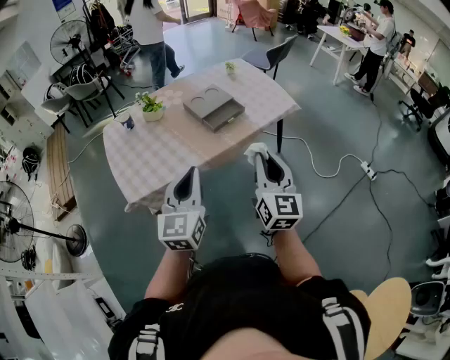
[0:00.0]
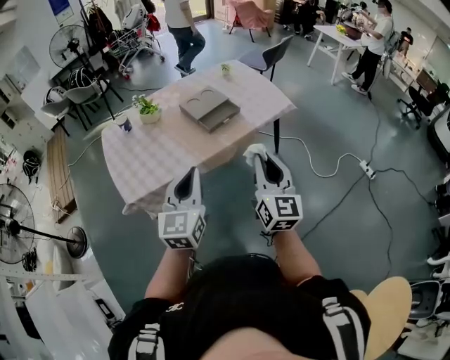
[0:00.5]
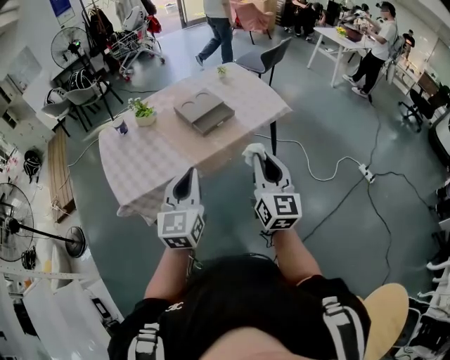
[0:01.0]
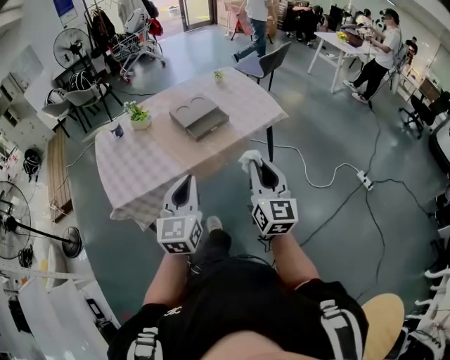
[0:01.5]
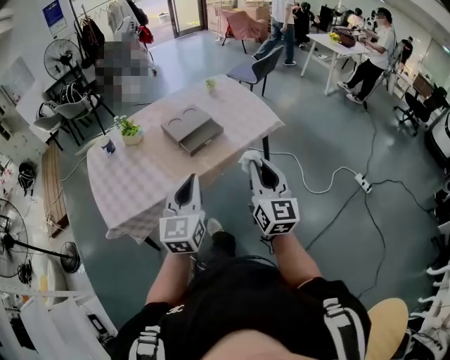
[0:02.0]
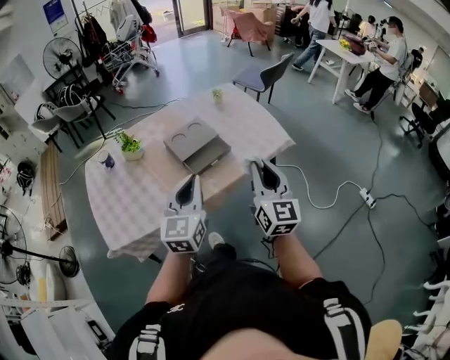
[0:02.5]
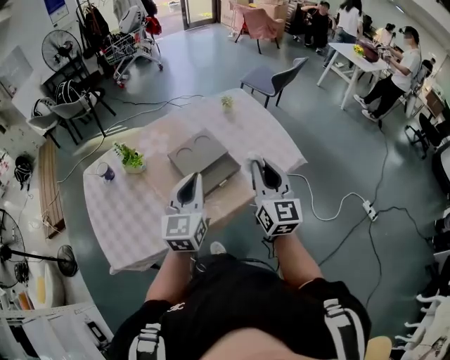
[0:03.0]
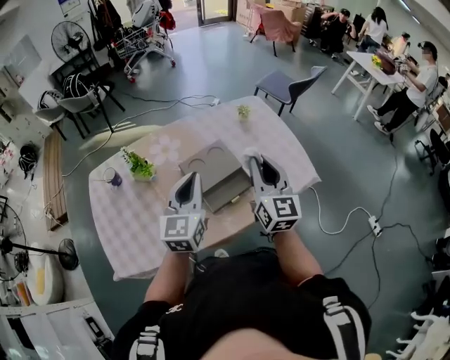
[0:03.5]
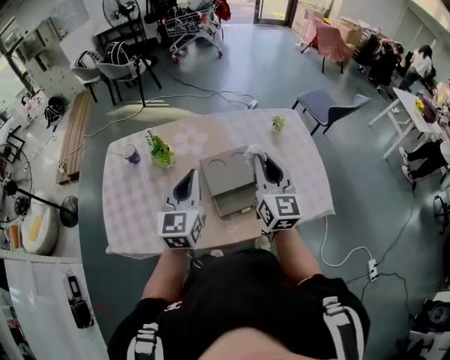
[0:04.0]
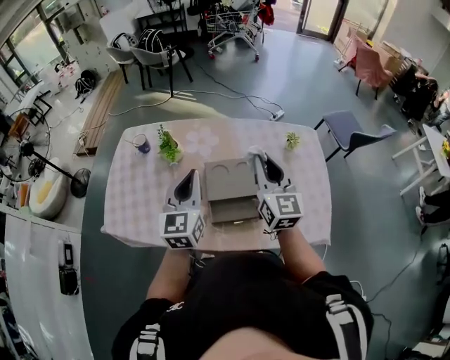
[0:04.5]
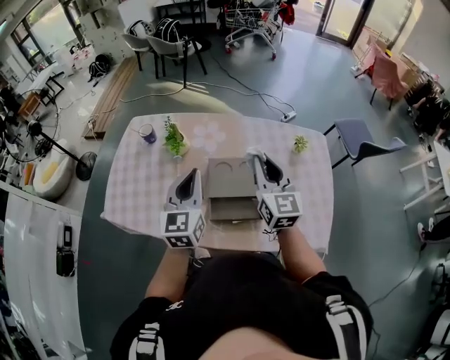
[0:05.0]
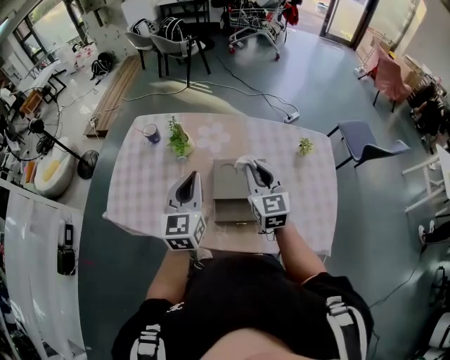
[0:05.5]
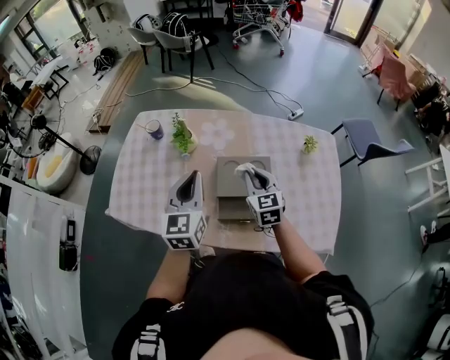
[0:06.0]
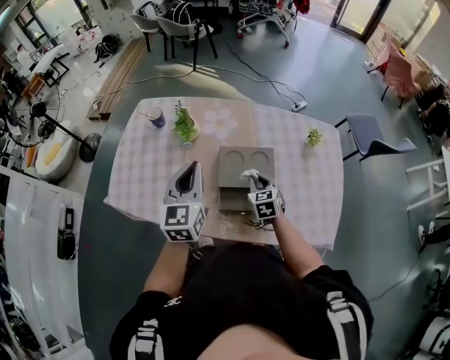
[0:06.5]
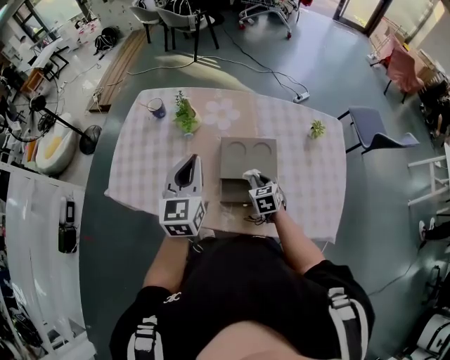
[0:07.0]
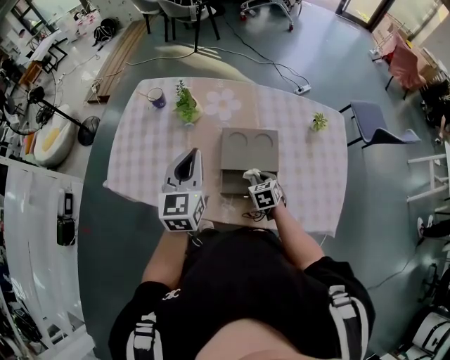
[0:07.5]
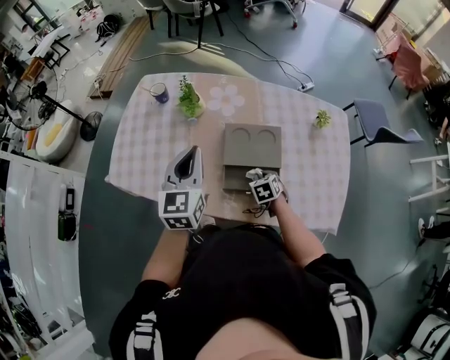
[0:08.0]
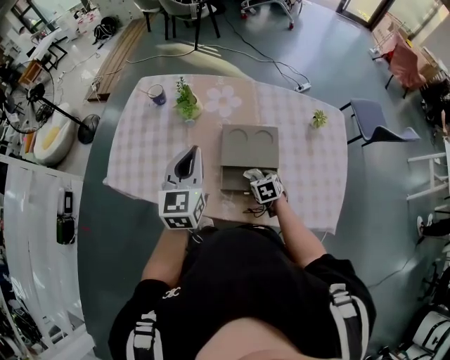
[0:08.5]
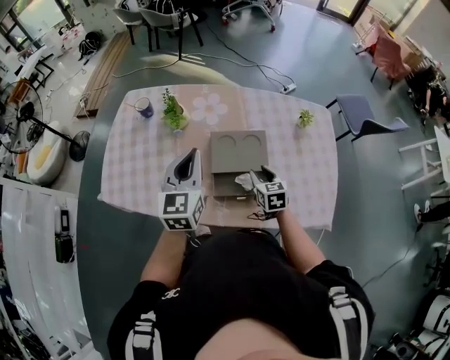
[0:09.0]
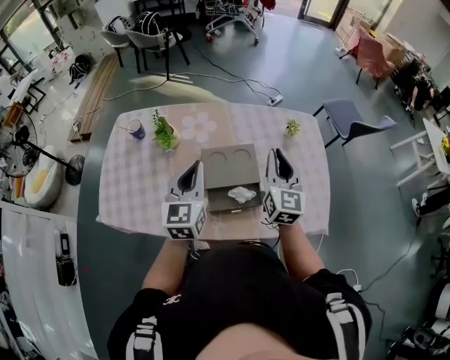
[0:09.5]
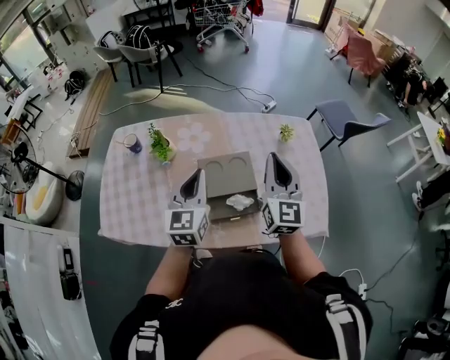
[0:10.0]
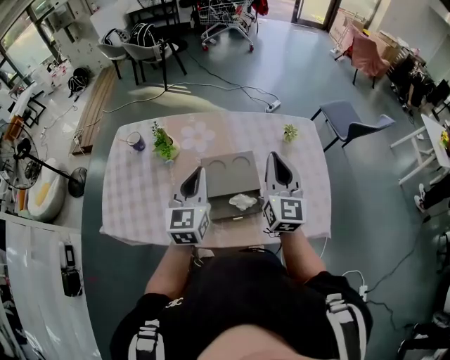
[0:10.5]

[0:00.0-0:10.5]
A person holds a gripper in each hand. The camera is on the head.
0:00.0 to 0:02.0: The two grippers go approximately 15 cm to the right and forward.
0:02.0 to 0:04.0: The pair of grippers is taken forward, some 50 cm. The left gripper turns by some 20 degrees, while the right gripper changes its angle by approximately 20 degrees.
0:04.0 to 0:06.5: The right gripper heads downward, covering approximately 25 cm, and points its fingers roughly 40 degrees further downward; the left gripper rotates roughly 20 degrees.
0:06.5 to 0:08.5: The right gripper is displaced downward and backward by approximately 15 cm, turns by about 20 degrees, and opens.
0:08.5 to 0:10.5: The right gripper moves upward, some 35 cm, points its fingers about 60 degrees further upward, and closes up, while the left gripper heads to the right, covering approximately 10 cm.

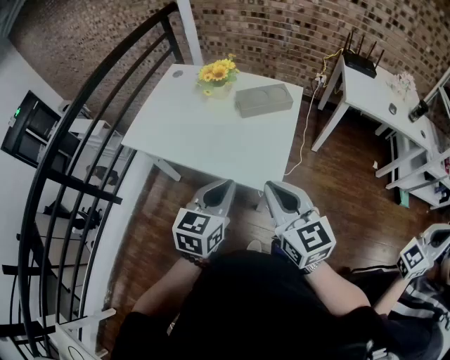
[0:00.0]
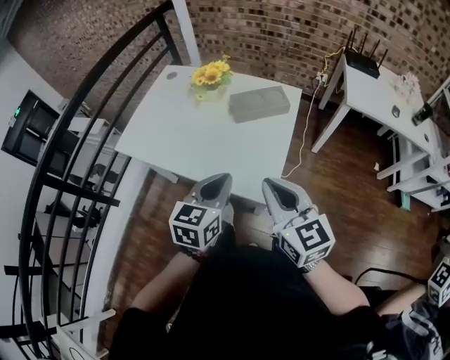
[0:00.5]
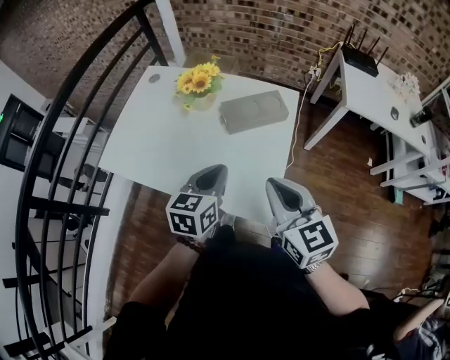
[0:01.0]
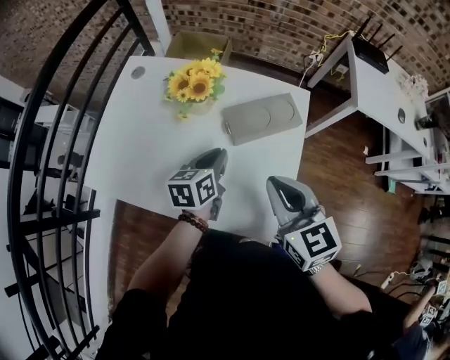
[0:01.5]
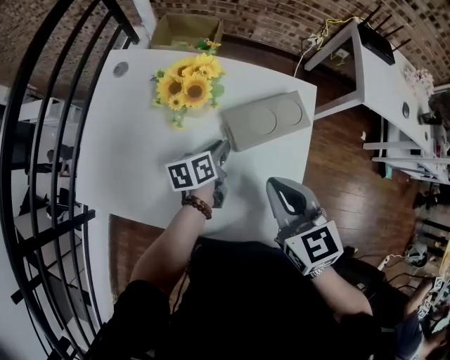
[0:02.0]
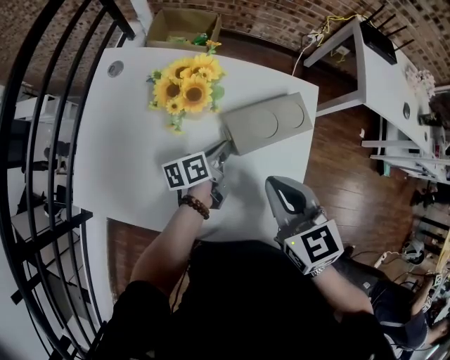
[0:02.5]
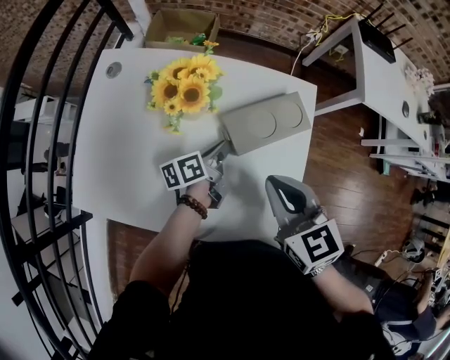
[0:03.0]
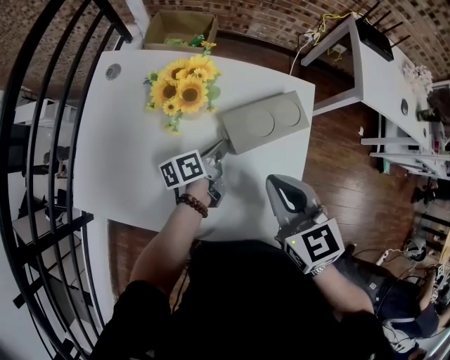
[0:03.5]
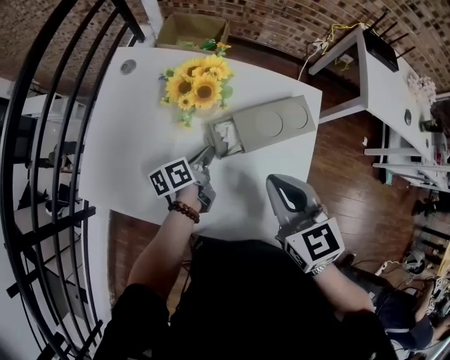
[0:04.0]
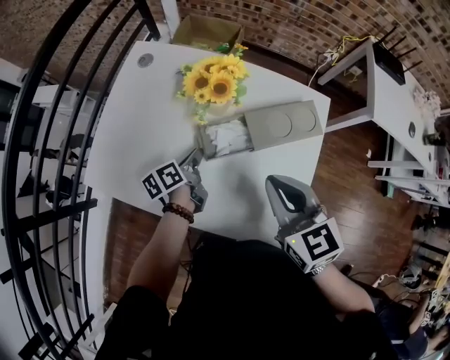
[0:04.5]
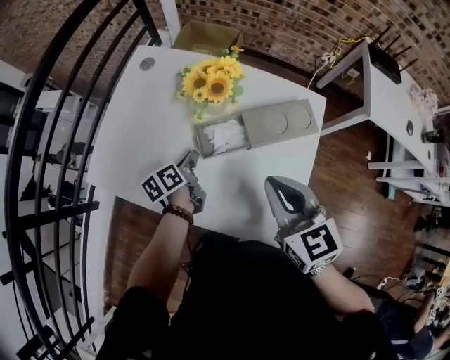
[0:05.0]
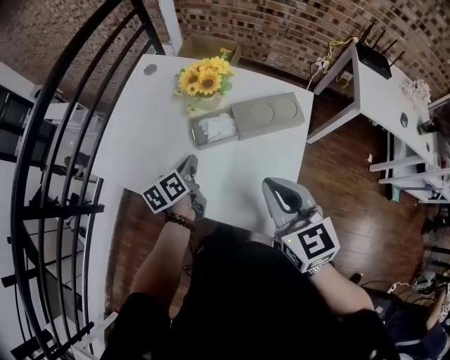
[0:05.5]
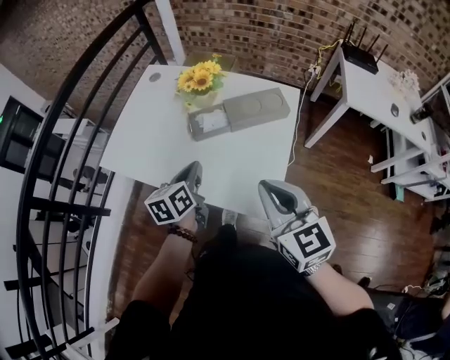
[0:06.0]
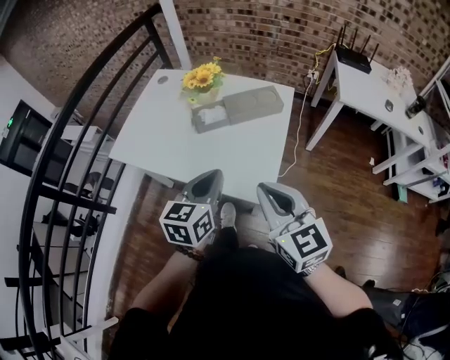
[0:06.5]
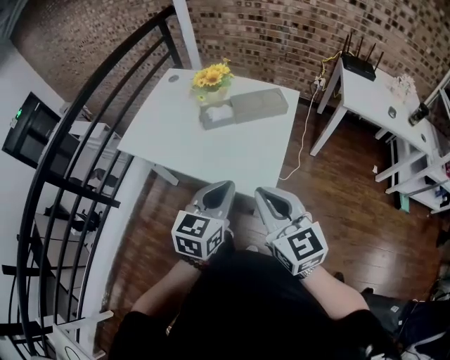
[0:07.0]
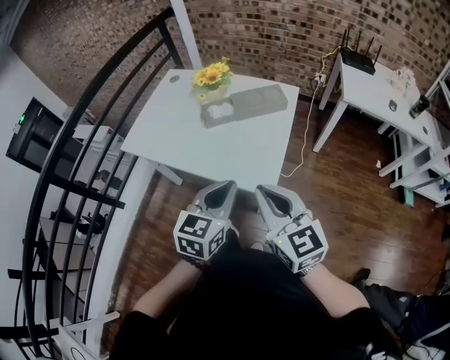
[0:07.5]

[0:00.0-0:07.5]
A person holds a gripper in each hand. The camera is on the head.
0:00.0 to 0:02.0: The right gripper travels forward by some 30 cm, and turns by some 20 degrees. Meanwhile the left gripper is displaced forward and downward by some 50 cm, and rotates around the line of its fingers by about 40 degrees, counterclockwise from behind.
0:02.0 to 0:04.0: The left gripper goes approximately 5 cm to the left.
0:04.0 to 0:05.5: The right gripper moves backward, roughly 10 cm, while the left gripper moves backward, upward and to the left, roughly 10 cm, and rotates about 20 degrees.
0:05.5 to 0:07.5: The left gripper heads backward, upward and to the right, covering roughly 40 cm, and rotates around the line of its fingers by some 50 degrees, clockwise from behind. Meanwhile the right gripper travels backward by roughly 25 cm.

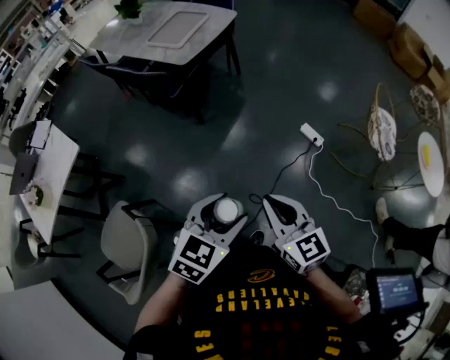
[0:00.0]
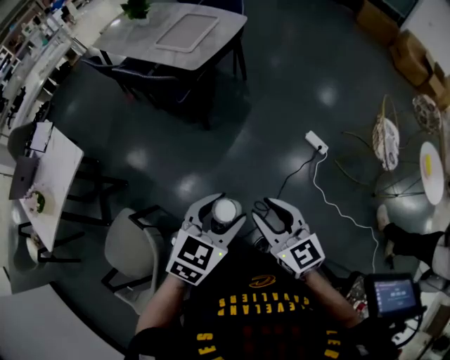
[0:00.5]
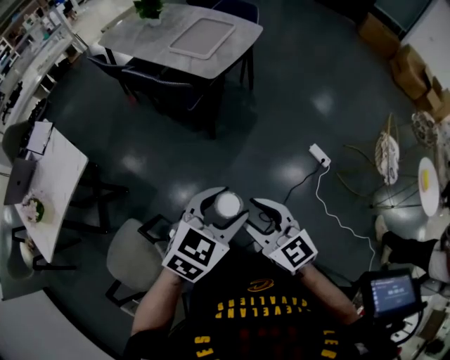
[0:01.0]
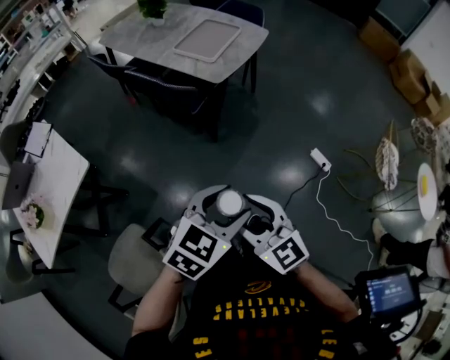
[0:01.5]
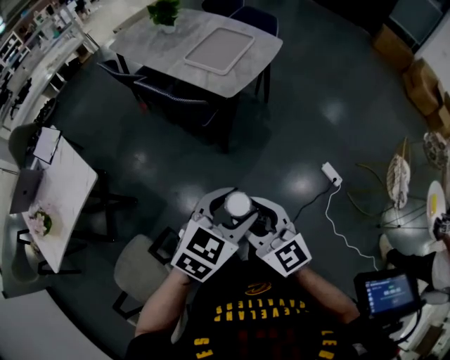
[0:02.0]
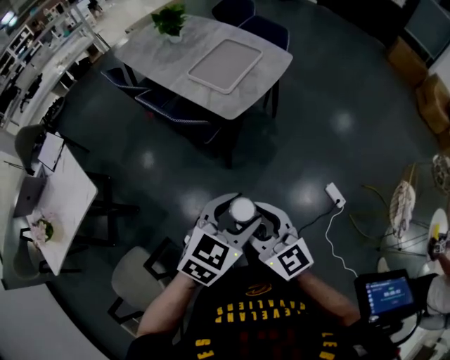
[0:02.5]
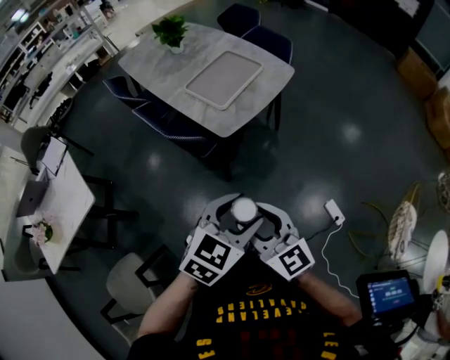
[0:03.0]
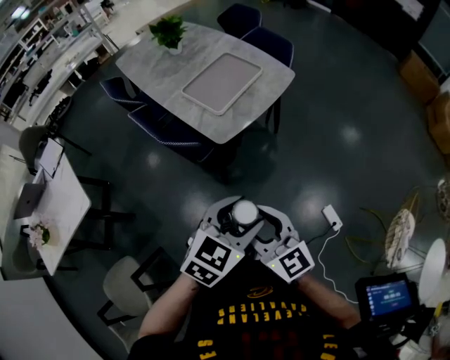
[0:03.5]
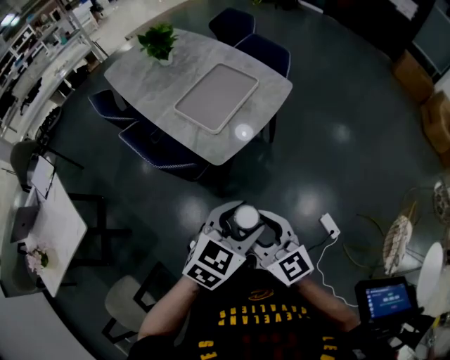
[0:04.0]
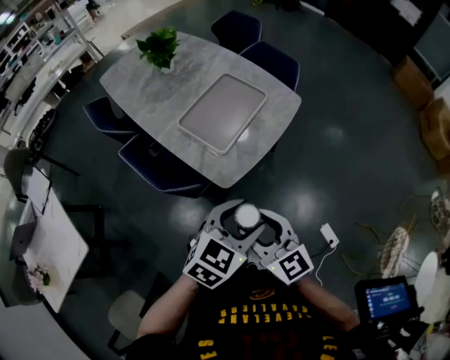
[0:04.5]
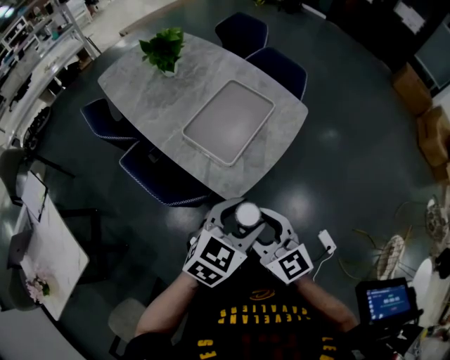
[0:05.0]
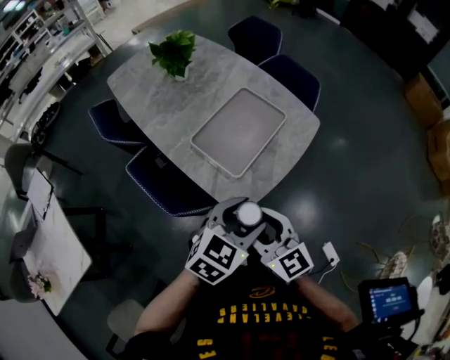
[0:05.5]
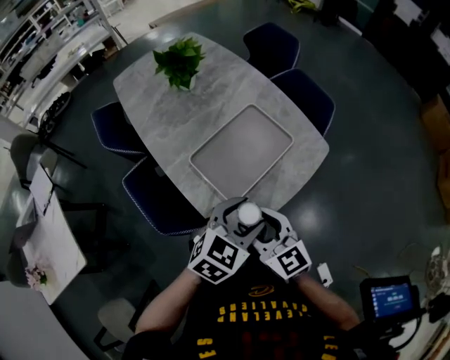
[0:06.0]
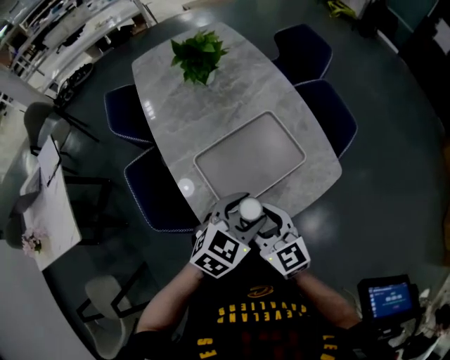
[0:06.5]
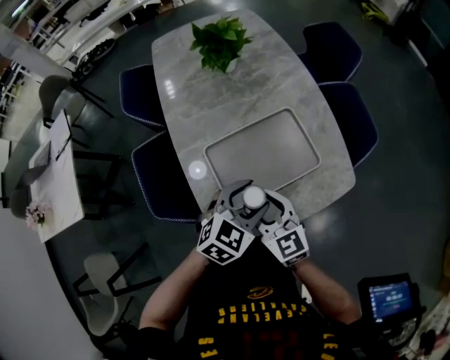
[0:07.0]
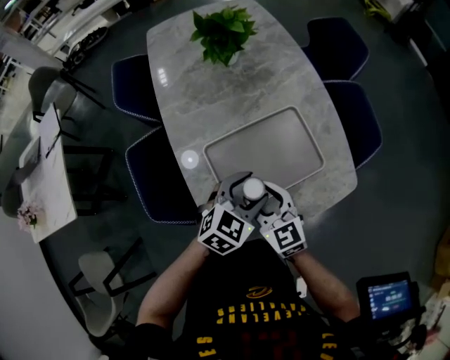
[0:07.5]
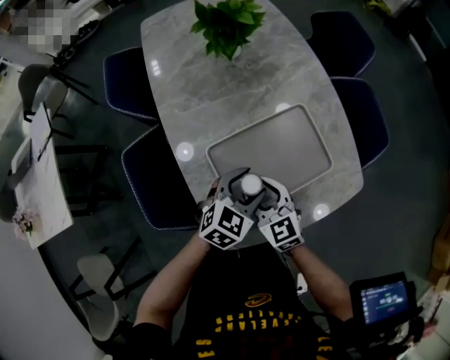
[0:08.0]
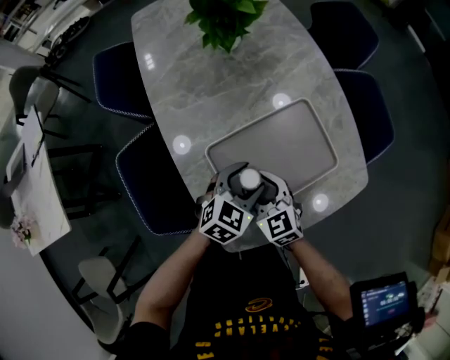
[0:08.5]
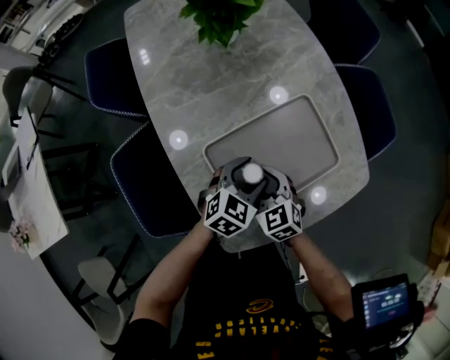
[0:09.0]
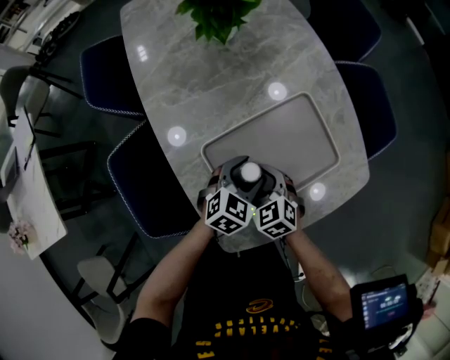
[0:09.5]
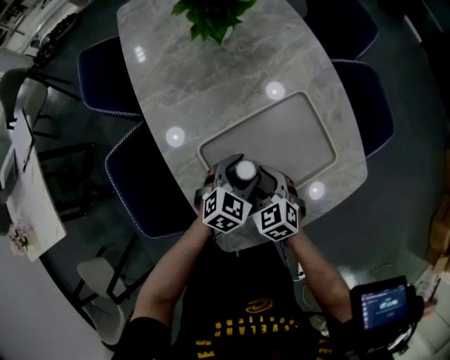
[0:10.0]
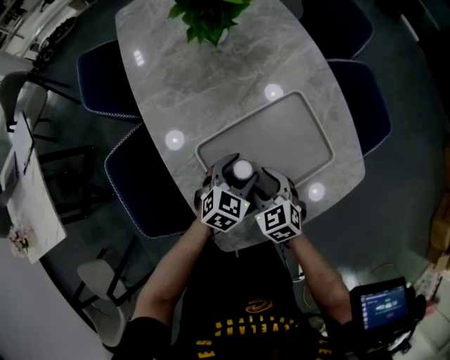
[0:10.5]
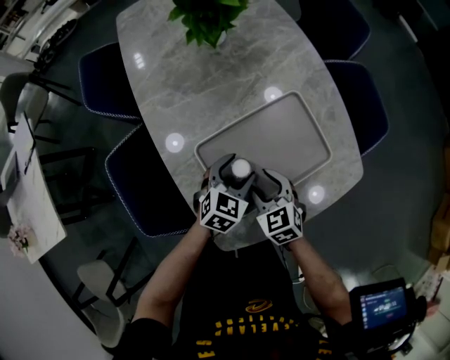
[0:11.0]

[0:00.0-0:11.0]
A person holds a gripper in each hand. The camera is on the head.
0:00.0 to 0:02.0: The right gripper goes some 35 cm to the left and forward, and opens its fingers; the left gripper shifts some 30 cm forward and to the left.
0:02.0 to 0:03.5: Both grippers move forward and to the right, approximately 25 cm.
0:03.5 to 0:05.5: Both grippers travel together forward, roughly 30 cm.
0:05.5 to 0:07.5: The right gripper moves some 30 cm, and rotates some 30 degrees. The left gripper ends up approximately 30 cm from where it was, and turns by roughly 30 degrees.
0:07.5 to 0:09.0: Both grippers move downward and forward, roughly 15 cm. The right gripper changes its angle by some 20 degrees.
0:09.0 to 0:11.0: There are only small adjustments of the grippers.
